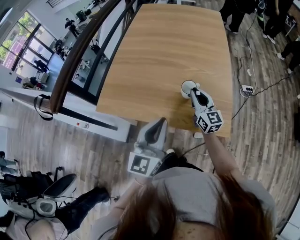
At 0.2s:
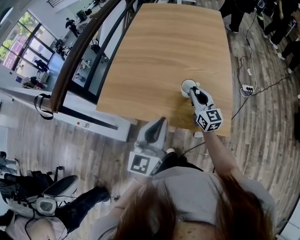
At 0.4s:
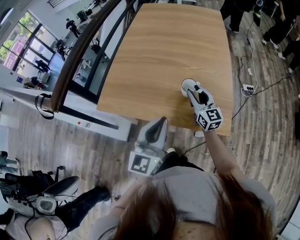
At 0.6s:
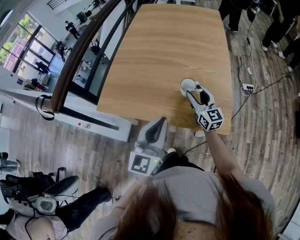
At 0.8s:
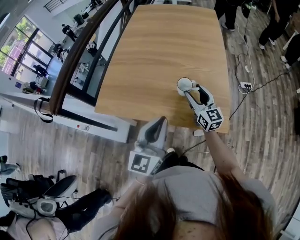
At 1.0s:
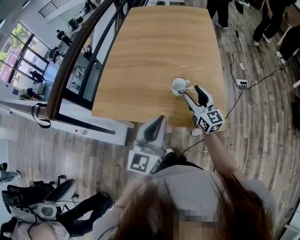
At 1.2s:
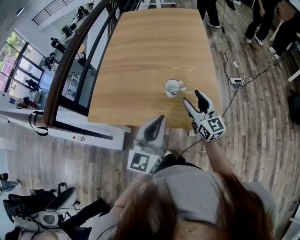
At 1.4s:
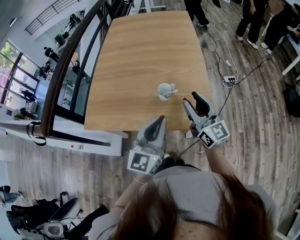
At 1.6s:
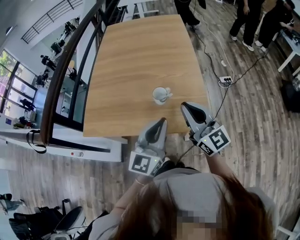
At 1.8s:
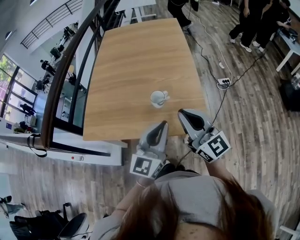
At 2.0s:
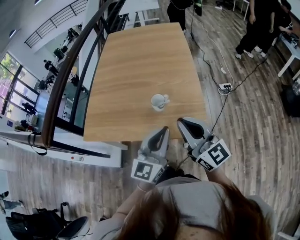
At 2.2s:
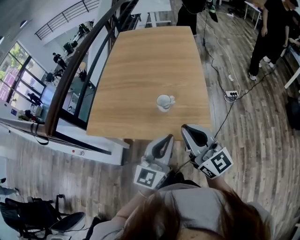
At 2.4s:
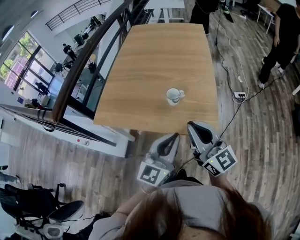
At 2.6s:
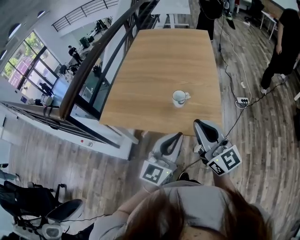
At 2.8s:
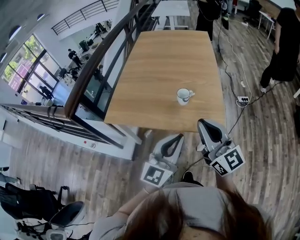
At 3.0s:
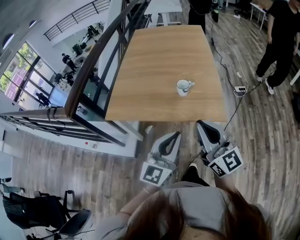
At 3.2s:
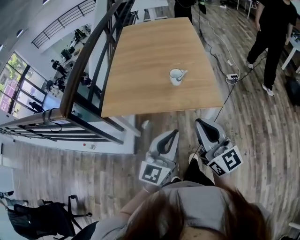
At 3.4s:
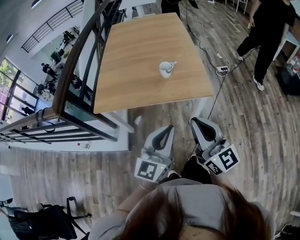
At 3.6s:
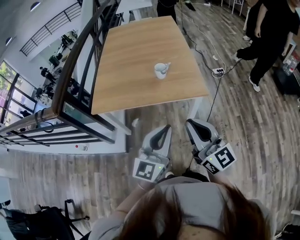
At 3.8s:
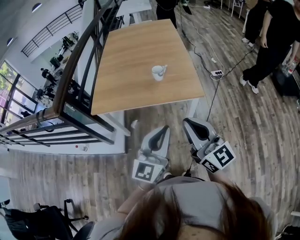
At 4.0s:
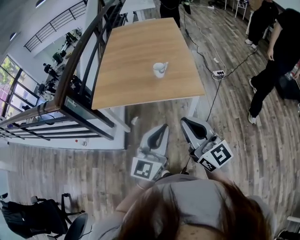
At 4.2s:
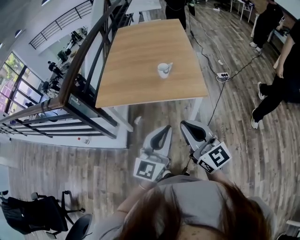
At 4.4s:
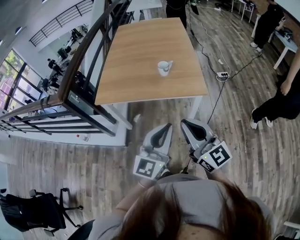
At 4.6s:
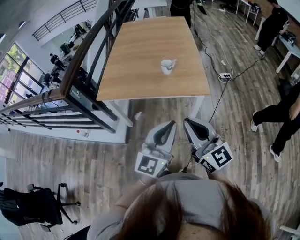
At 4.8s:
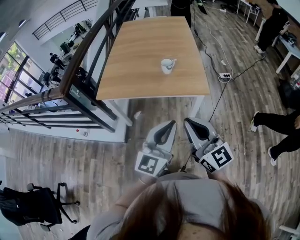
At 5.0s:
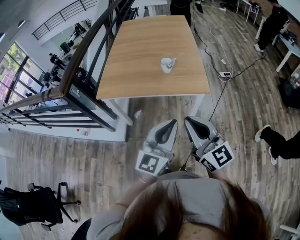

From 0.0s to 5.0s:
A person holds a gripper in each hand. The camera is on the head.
From 0.0s to 1.6s: The right gripper heads upward and backward, covering roughly 20 cm, and opens and closes again, while the left gripper shifts about 10 cm to the right.
From 1.6s to 3.4s: Both grippers travel together backward, approximately 25 cm.
From 3.4s to 5.0s: Both grippers travel together backward, some 5 cm.

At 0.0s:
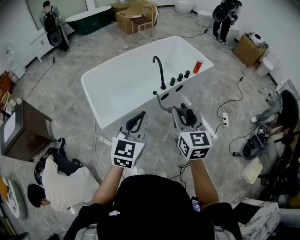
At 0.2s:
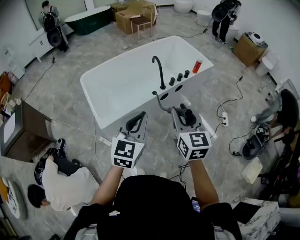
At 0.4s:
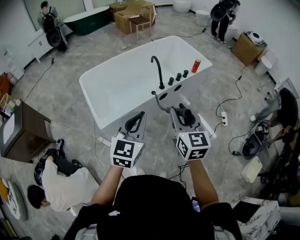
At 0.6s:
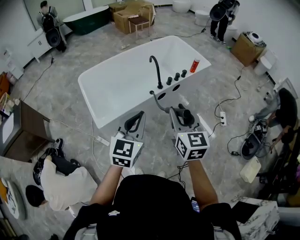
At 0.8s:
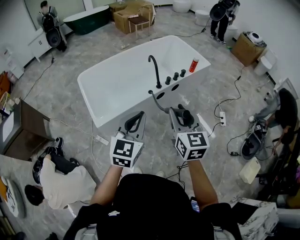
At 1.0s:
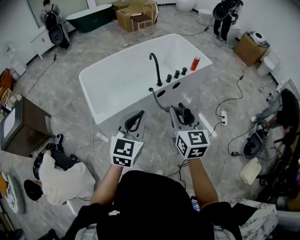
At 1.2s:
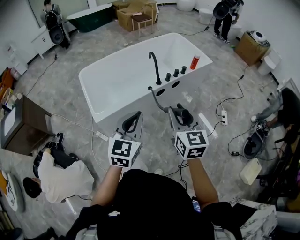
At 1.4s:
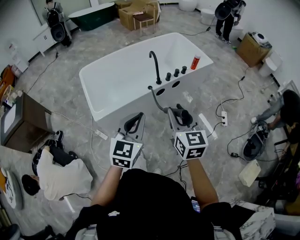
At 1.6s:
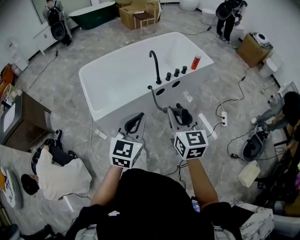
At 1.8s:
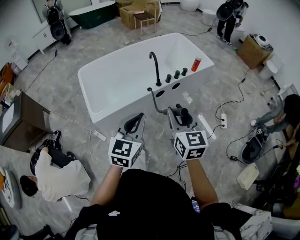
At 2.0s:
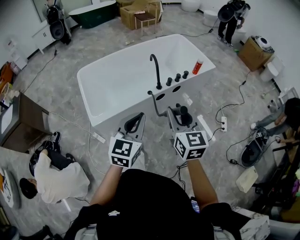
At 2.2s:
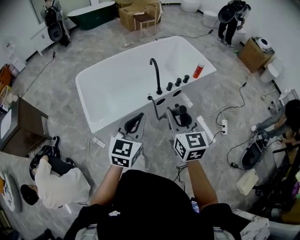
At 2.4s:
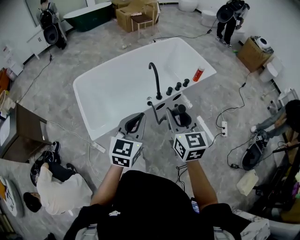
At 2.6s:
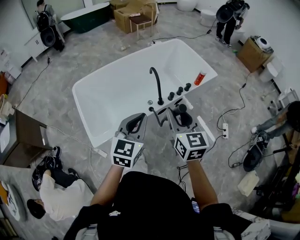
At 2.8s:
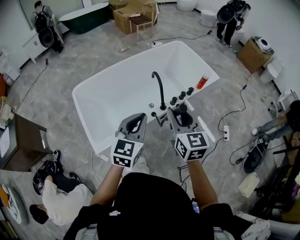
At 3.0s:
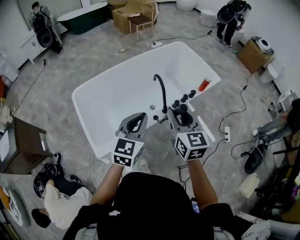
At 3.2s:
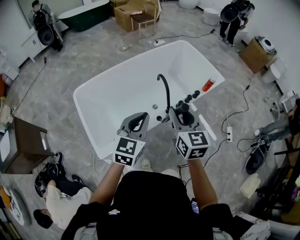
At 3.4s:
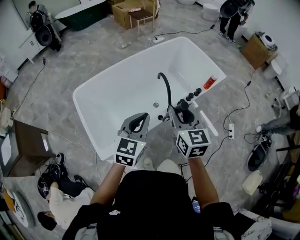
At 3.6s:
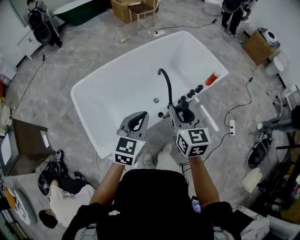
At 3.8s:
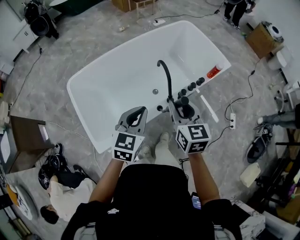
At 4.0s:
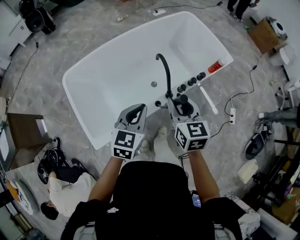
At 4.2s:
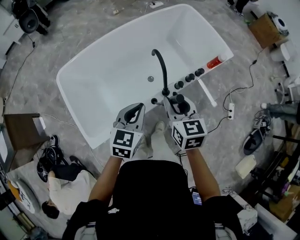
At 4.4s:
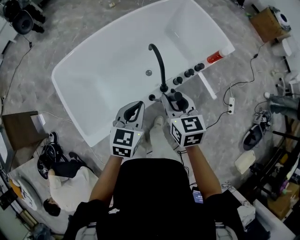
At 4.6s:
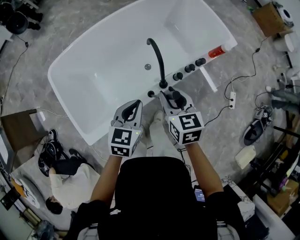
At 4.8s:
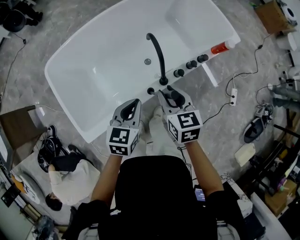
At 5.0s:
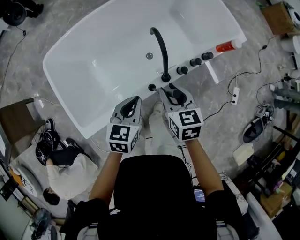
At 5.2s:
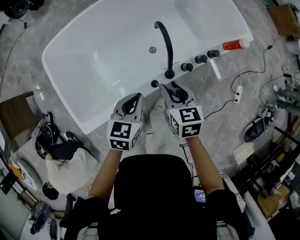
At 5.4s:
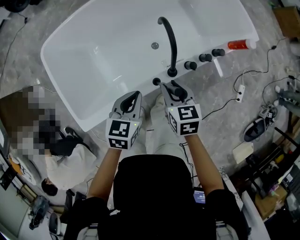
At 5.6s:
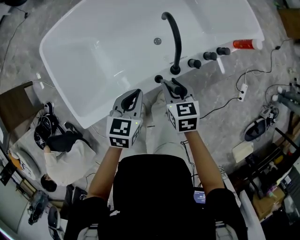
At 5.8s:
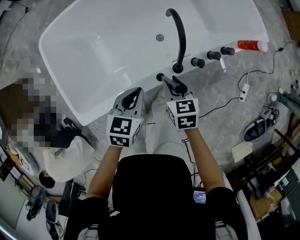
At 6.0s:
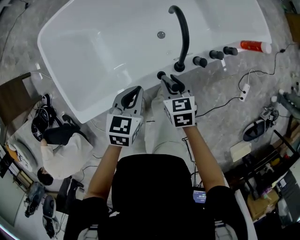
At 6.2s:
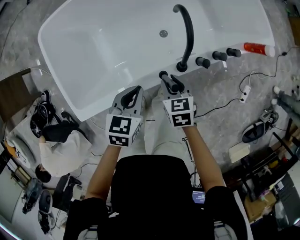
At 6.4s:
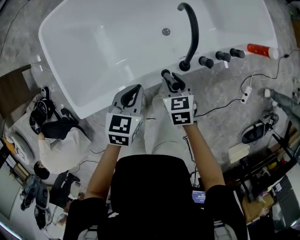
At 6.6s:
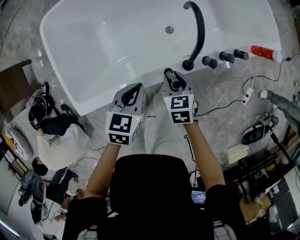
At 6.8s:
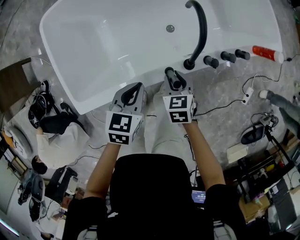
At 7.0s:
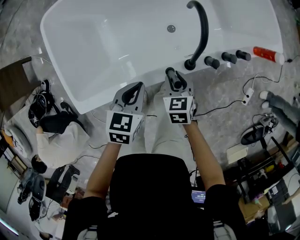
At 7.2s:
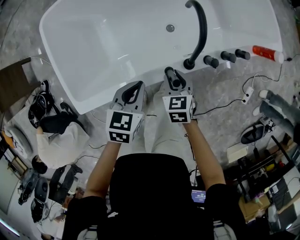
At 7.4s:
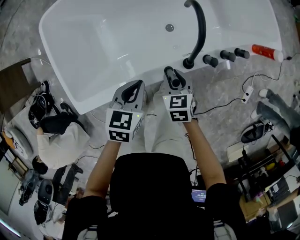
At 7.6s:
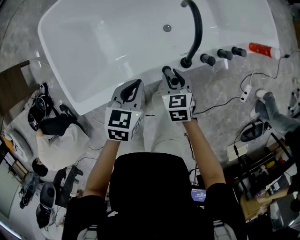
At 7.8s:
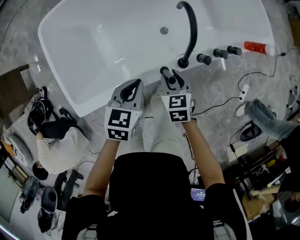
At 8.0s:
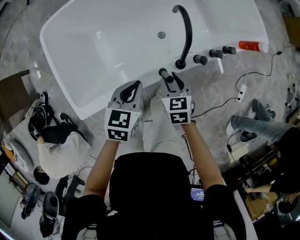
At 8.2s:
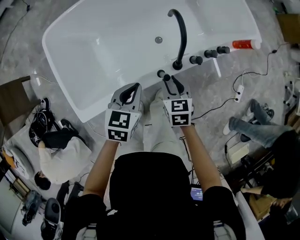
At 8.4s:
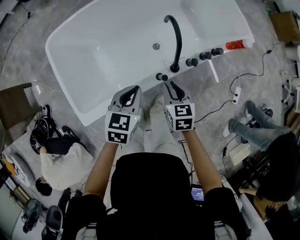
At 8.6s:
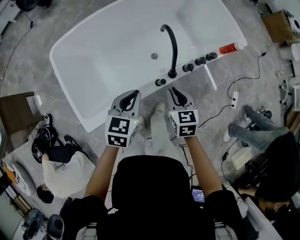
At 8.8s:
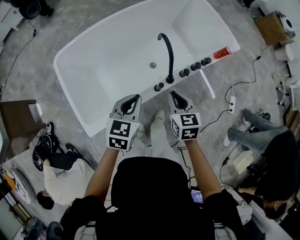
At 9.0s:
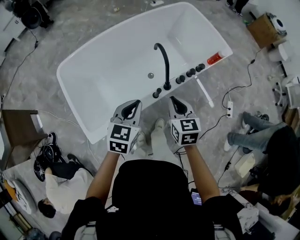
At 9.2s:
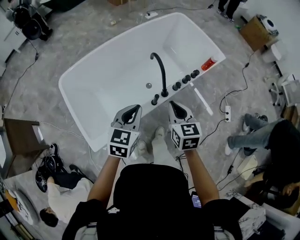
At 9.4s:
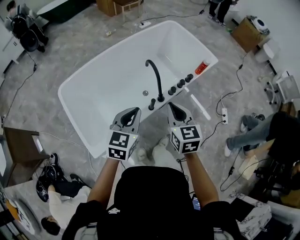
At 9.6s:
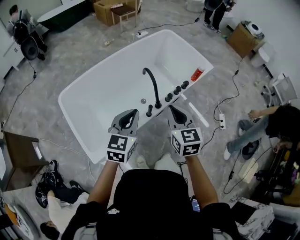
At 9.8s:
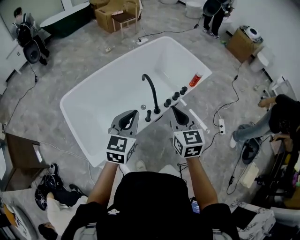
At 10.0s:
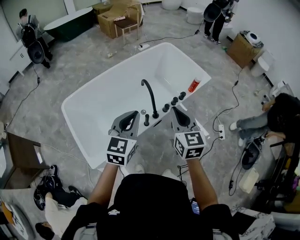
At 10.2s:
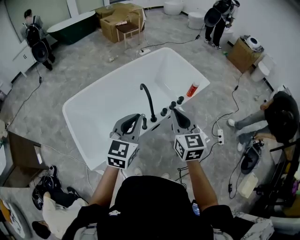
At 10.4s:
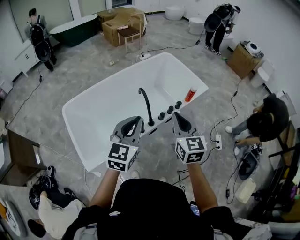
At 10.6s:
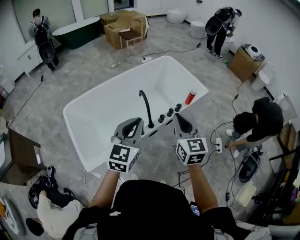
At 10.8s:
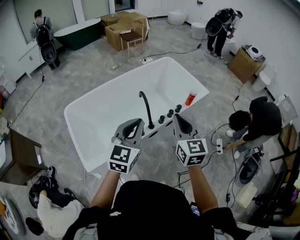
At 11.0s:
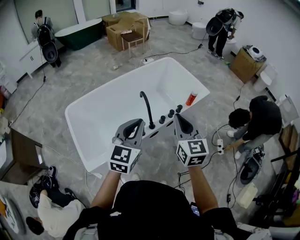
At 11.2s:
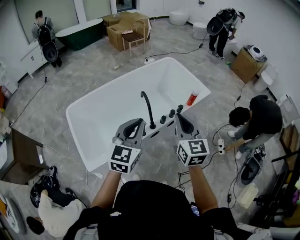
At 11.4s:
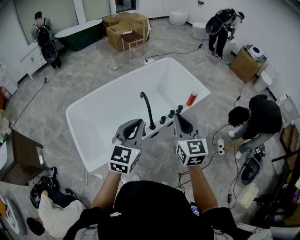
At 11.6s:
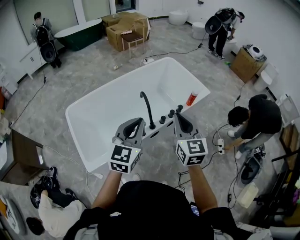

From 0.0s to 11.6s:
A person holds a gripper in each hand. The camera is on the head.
From 0.0s to 1.4s: Both grippers move to the right, approximately 5 cm.
From 1.4s to 2.8s: Both grippers move forward, some 30 cm.
From 2.8s to 4.4s: Both grippers move forward and downward, roughly 25 cm. The left gripper turns by roughly 20 degrees; the right gripper turns by approximately 20 degrees.
From 4.4s to 5.8s: The two grippers go about 20 cm downward. The right gripper changes its angle by some 20 degrees.
From 5.8s to 7.2s: The right gripper moves downward, roughly 5 cm.
From 7.2s to 8.8s: The two grippers go about 20 cm upward. The right gripper rotates some 20 degrees, and closes. The left gripper changes its angle by some 20 degrees.
From 8.8s to 10.2s: Both grippers travel together upward, roughly 25 cm. The left gripper rotates some 30 degrees, while the right gripper rotates approximately 30 degrees.
From 10.2s to 11.6s: The left gripper shifts by some 5 cm. Meanwhile the right gripper moves some 5 cm.

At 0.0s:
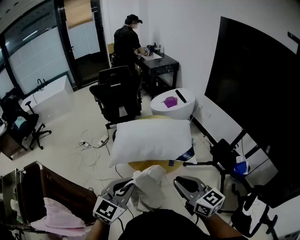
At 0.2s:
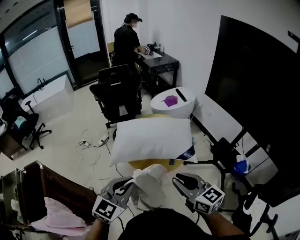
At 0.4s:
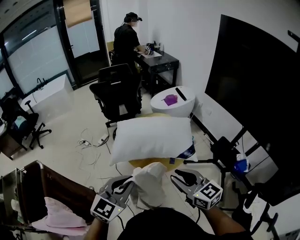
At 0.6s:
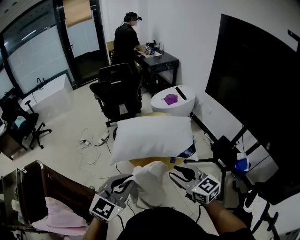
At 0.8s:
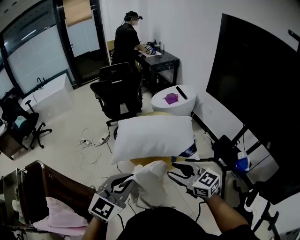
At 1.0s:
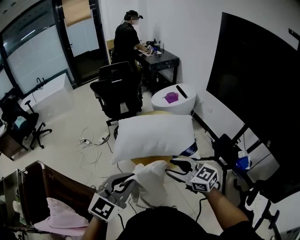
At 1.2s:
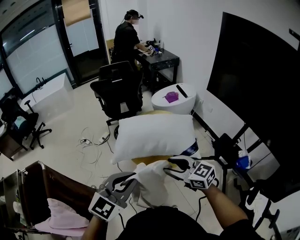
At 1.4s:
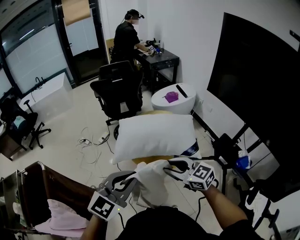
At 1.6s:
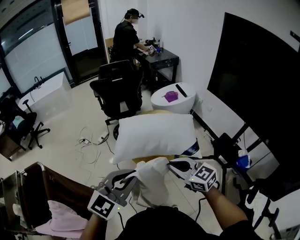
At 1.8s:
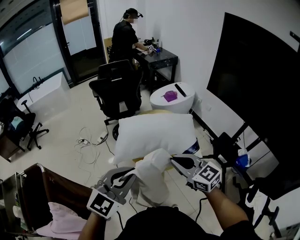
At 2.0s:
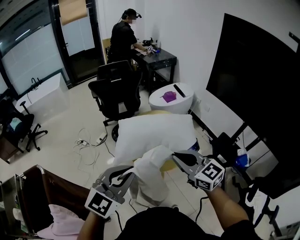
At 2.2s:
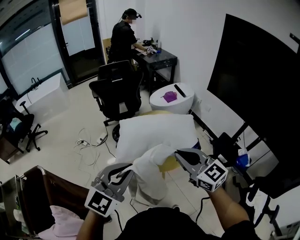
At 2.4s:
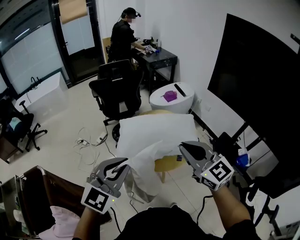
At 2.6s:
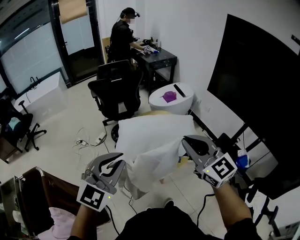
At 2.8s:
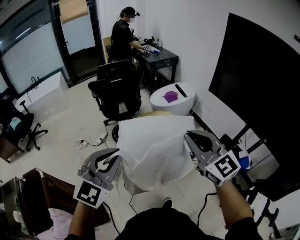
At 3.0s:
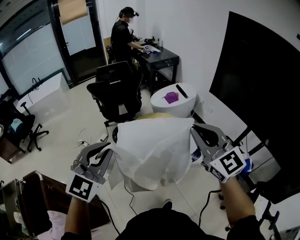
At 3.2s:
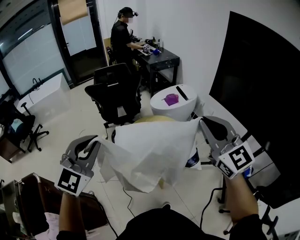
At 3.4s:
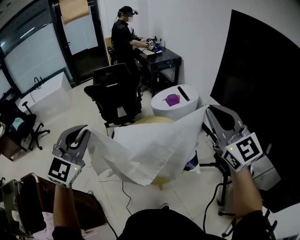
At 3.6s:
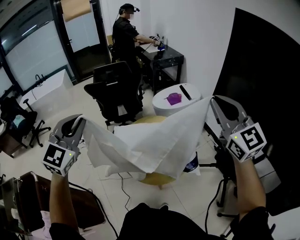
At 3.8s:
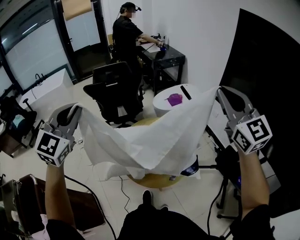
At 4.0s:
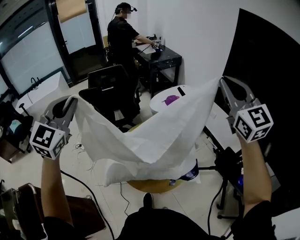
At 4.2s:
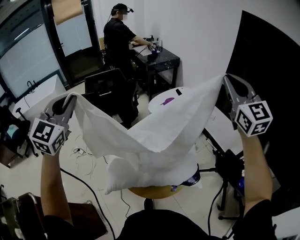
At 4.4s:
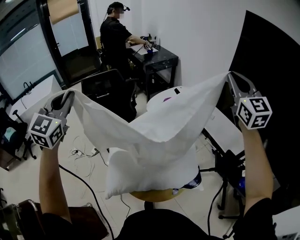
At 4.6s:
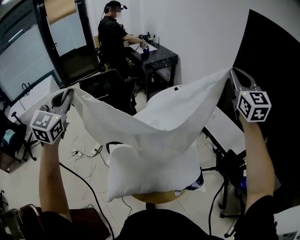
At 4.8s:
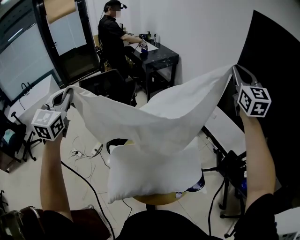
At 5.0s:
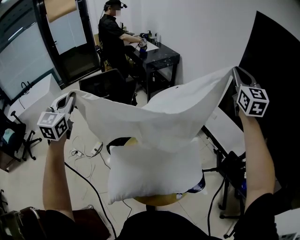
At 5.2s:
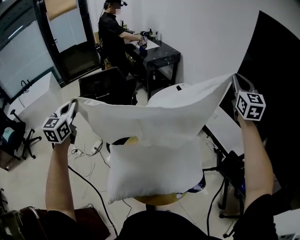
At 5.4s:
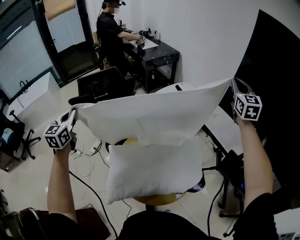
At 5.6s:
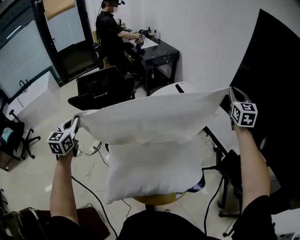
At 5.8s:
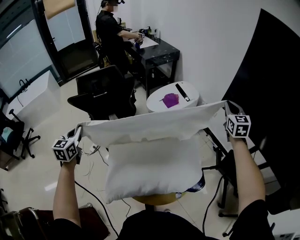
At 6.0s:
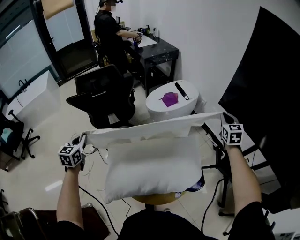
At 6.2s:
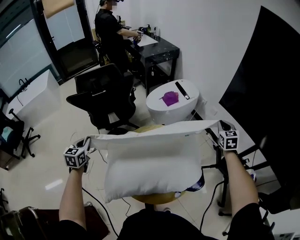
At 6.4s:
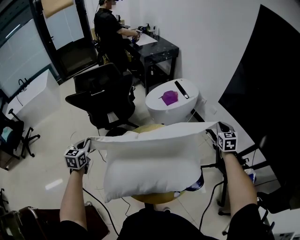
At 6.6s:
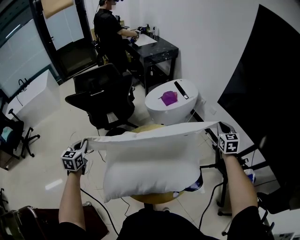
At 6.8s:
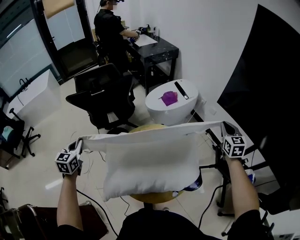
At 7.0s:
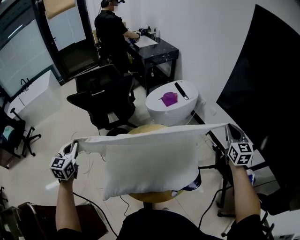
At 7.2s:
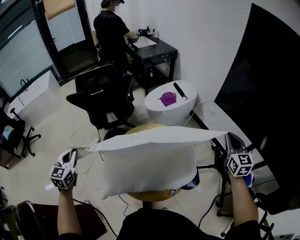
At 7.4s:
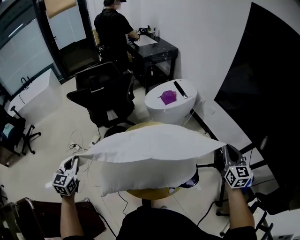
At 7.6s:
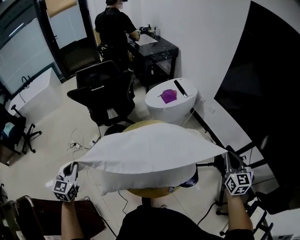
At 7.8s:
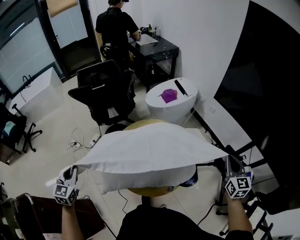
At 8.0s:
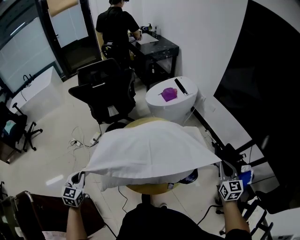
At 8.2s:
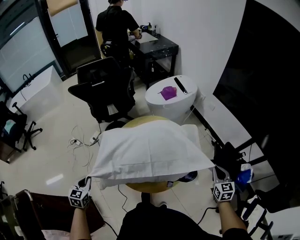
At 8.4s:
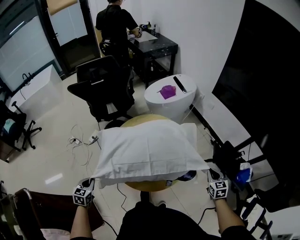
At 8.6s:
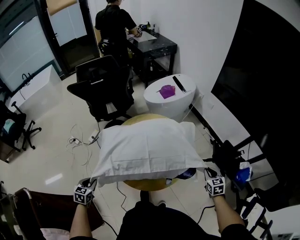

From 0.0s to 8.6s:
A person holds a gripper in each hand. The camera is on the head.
From 0.0s to 1.4s: The right gripper shifts some 10 cm to the left and forward, swivels some 20 degrees, and opens its fingers. The left gripper is displaced upward by roughly 5 cm.
From 1.4s to 2.8s: The left gripper heads forward, upward and to the left, covering about 10 cm. The right gripper travels upward and forward by roughly 20 cm, rotates approximately 30 degrees, and closes up.
From 2.8s to 4.4s: The right gripper goes approximately 40 cm forward and to the right, and swivels approximately 30 degrees; the left gripper is displaced forward by roughly 40 cm.
From 4.4s to 5.8s: The right gripper is displaced downward and forward by about 25 cm, and rotates approximately 30 degrees. Meanwhile the left gripper shifts approximately 25 cm downward, and turns by roughly 30 degrees.
From 5.8s to 7.2s: Both grippers travel together backward, about 15 cm.
From 7.2s to 8.6s: Both grippers travel together downward and backward, some 30 cm. The right gripper changes its angle by some 30 degrees; the left gripper turns by some 30 degrees, and opens its fingers.
